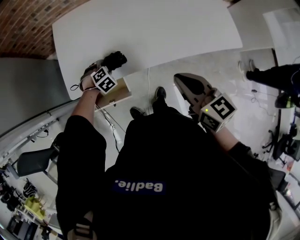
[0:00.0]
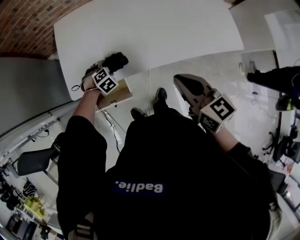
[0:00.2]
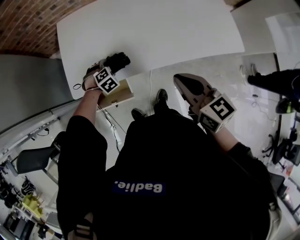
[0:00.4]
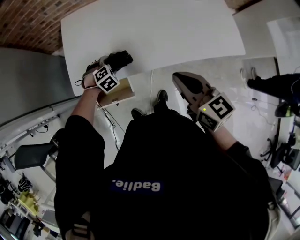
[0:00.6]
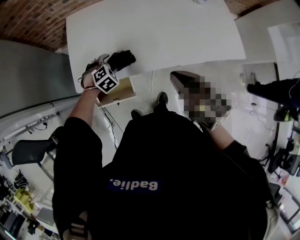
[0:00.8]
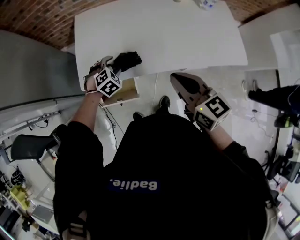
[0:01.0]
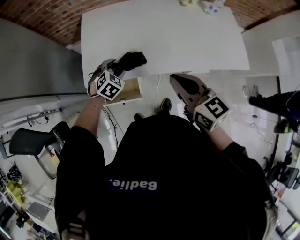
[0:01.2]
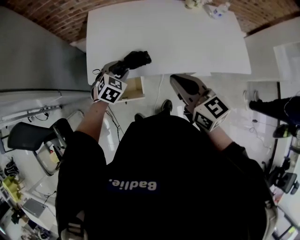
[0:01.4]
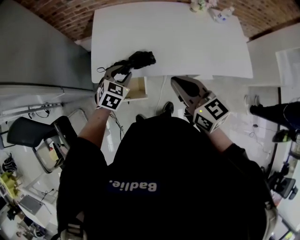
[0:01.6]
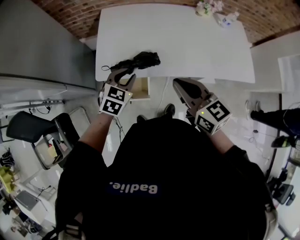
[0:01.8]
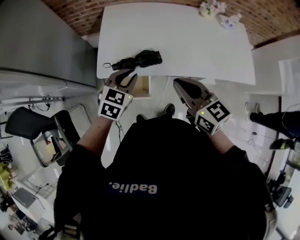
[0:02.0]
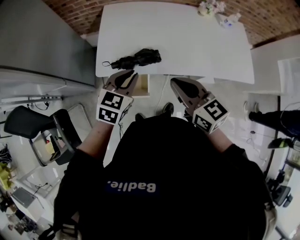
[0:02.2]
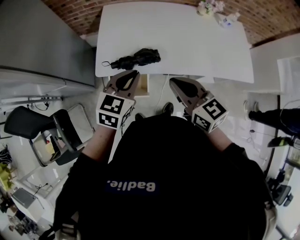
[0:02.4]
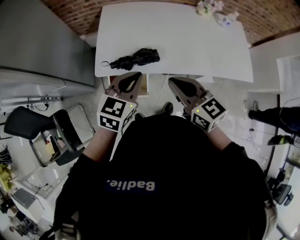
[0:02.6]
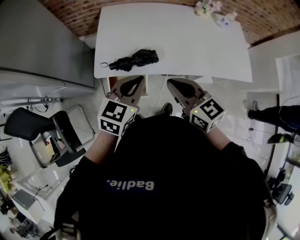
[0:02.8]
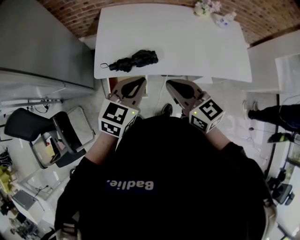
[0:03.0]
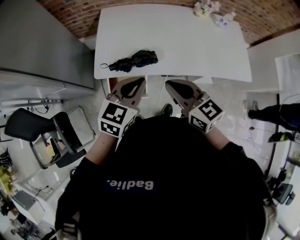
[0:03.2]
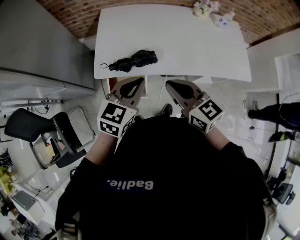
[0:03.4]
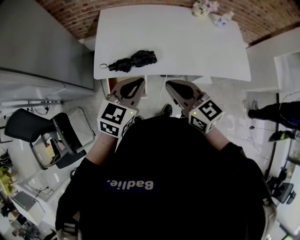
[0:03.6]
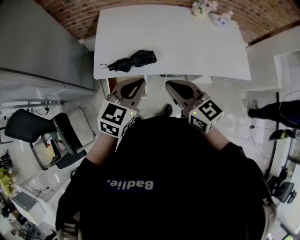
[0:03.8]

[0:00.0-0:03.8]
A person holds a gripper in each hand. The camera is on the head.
0:00.0 to 0:01.2: The left gripper shifts about 10 cm upward, and turns by some 30 degrees, while the right gripper is displaced to the left by roughly 10 cm.
0:01.2 to 0:02.6: The left gripper travels upward and backward by some 20 cm, rotates some 40 degrees, and closes its fingers. The right gripper shifts approximately 5 cm to the left.
0:02.6 to 0:03.8: There are only small adjustments of the grippers.

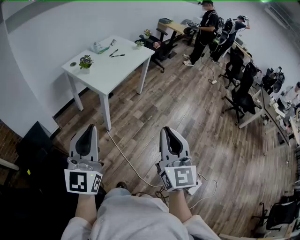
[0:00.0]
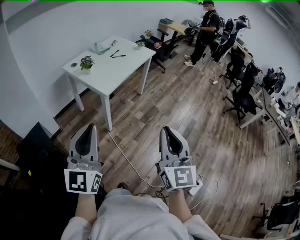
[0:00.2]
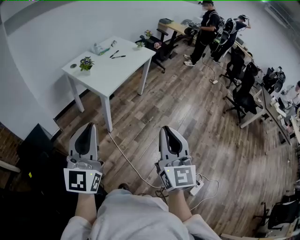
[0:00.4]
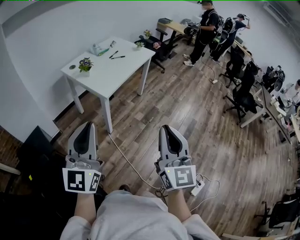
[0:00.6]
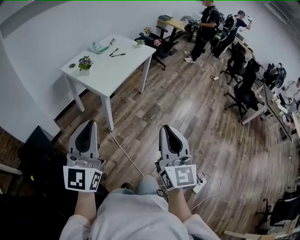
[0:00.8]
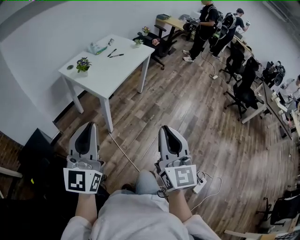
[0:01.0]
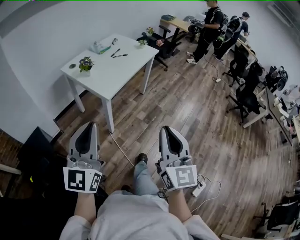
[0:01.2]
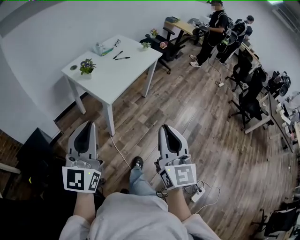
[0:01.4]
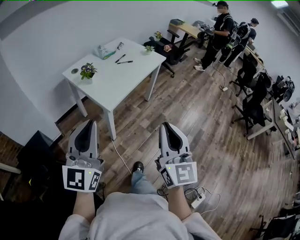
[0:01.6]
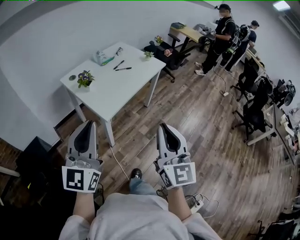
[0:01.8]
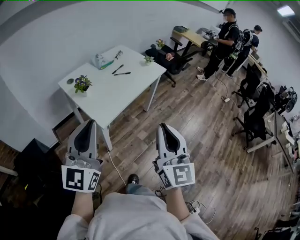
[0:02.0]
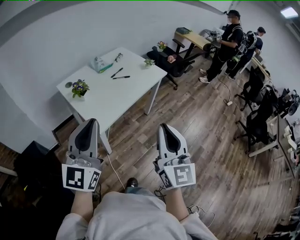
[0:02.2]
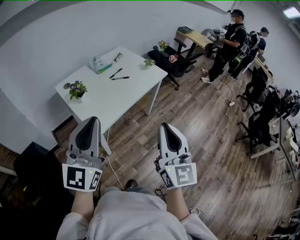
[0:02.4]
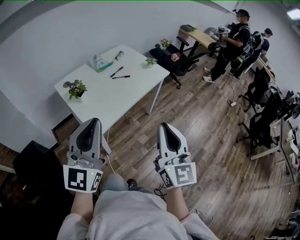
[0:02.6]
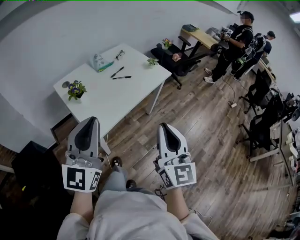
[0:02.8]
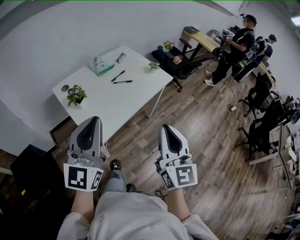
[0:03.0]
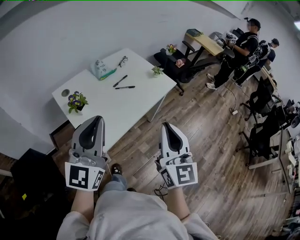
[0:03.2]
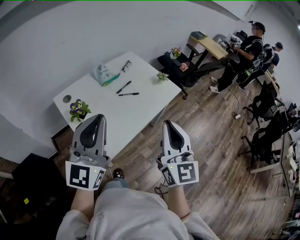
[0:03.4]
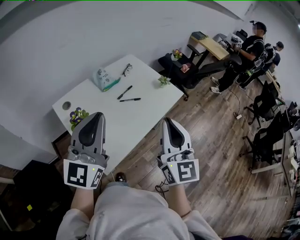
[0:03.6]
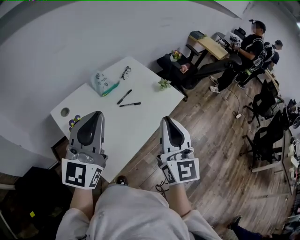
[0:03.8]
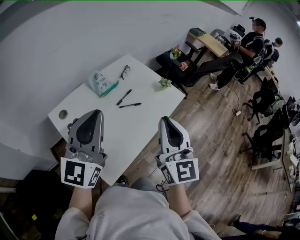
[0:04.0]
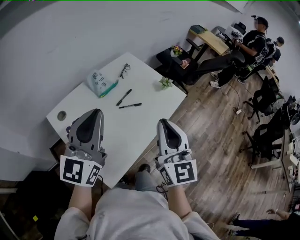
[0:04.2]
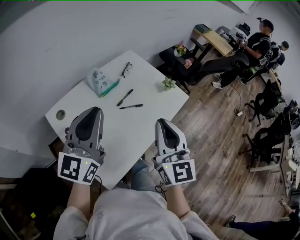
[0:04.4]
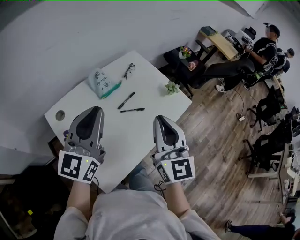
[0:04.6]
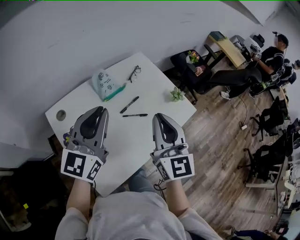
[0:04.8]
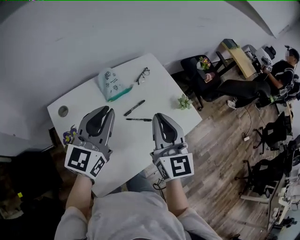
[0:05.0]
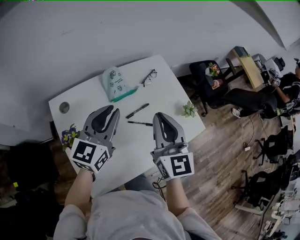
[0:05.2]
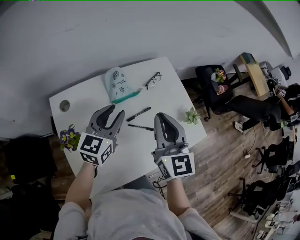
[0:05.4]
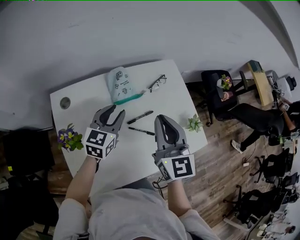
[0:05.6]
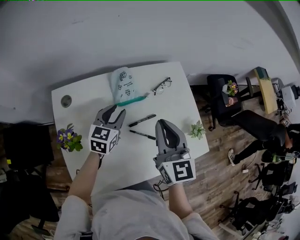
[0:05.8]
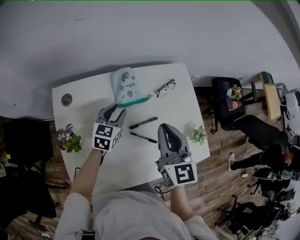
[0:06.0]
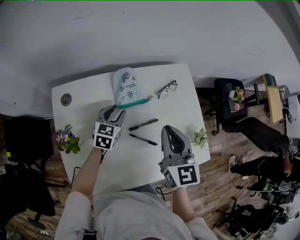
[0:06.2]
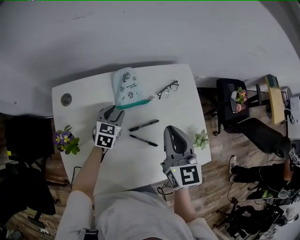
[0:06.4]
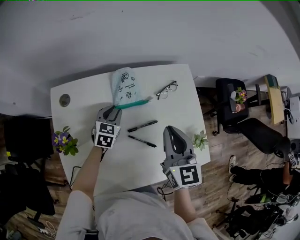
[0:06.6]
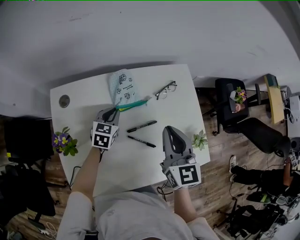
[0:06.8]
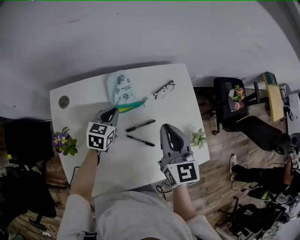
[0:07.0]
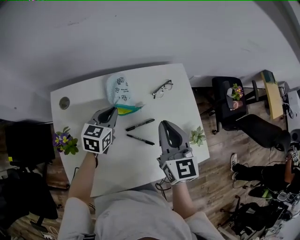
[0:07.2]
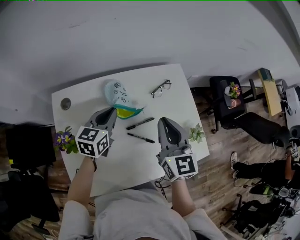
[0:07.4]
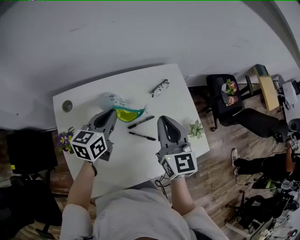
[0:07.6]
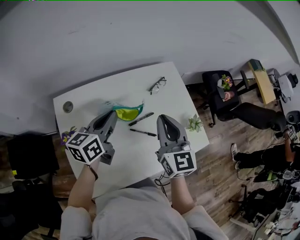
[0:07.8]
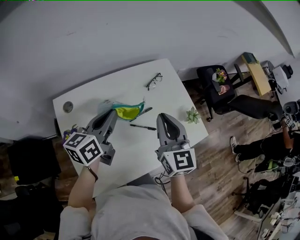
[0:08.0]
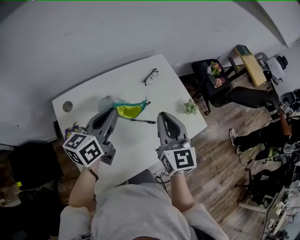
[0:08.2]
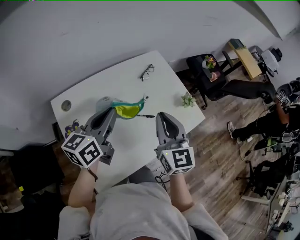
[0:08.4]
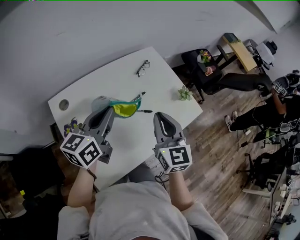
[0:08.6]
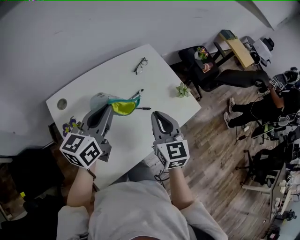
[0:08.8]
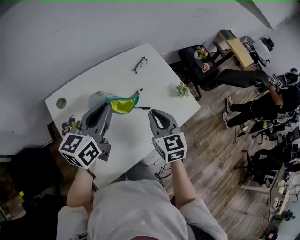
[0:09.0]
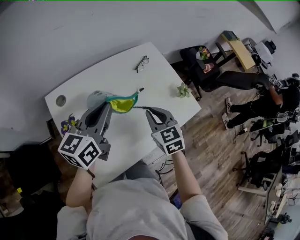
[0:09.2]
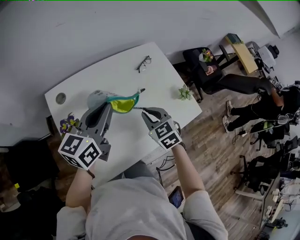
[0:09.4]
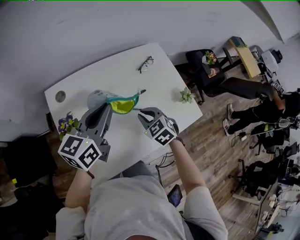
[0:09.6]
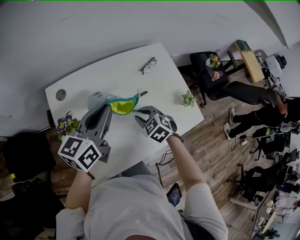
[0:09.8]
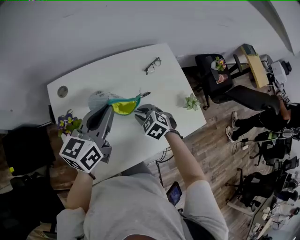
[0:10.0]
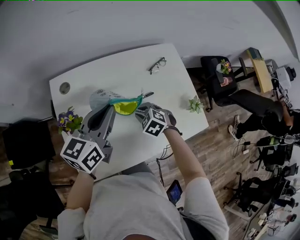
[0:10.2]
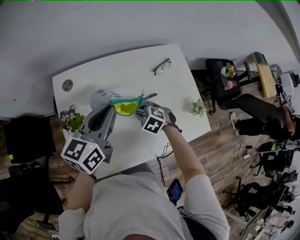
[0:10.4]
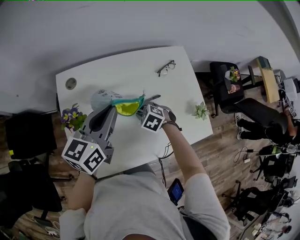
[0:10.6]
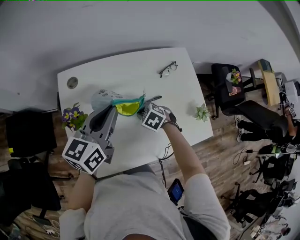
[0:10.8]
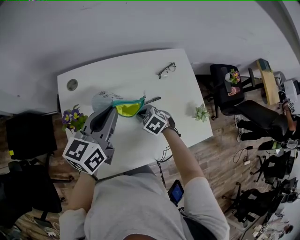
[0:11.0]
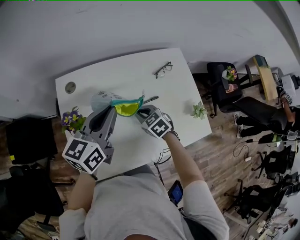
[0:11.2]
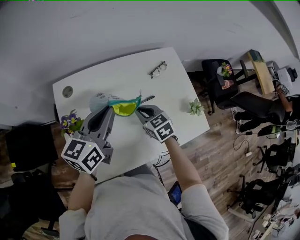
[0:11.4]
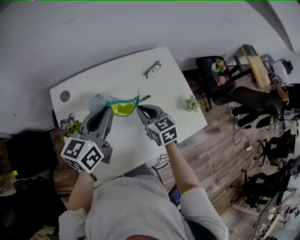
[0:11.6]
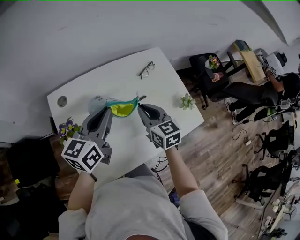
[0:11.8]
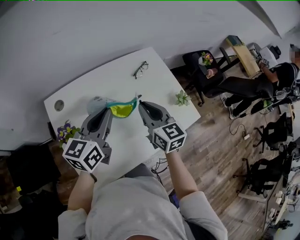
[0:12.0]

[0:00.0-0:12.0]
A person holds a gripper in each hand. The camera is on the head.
0:00.0 to 0:01.6: Both grippers travel together forward, about 20 cm.
0:01.6 to 0:03.0: Both grippers travel together forward, about 25 cm.
0:03.0 to 0:04.4: The grippers both shift forward by some 30 cm.
0:04.4 to 0:06.0: The left gripper shifts some 30 cm downward, tilts its fingers roughly 40 degrees downward, and opens; the right gripper ends up some 30 cm from where it was, and changes its angle by approximately 40 degrees.
0:06.0 to 0:07.6: The left gripper shifts some 10 cm upward, and closes its fingers.
0:07.6 to 0:09.0: The left gripper goes roughly 15 cm backward and upward. Meanwhile the right gripper moves backward, roughly 15 cm.
0:09.0 to 0:10.4: The right gripper goes some 20 cm downward, and tips its fingers downward by some 40 degrees.
0:10.4 to 0:12.0: The right gripper moves upward, roughly 20 cm, and points its fingers about 50 degrees further upward.

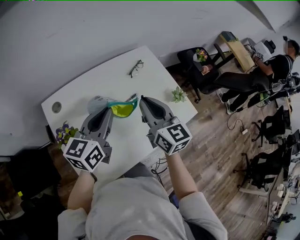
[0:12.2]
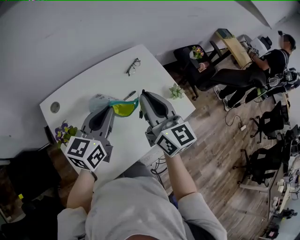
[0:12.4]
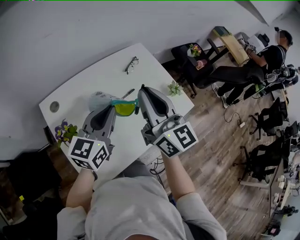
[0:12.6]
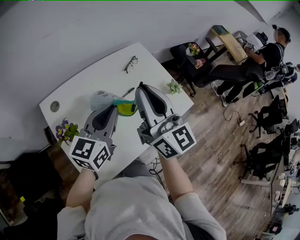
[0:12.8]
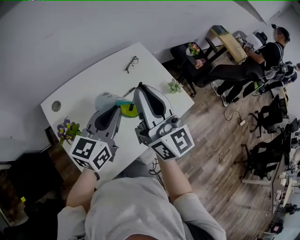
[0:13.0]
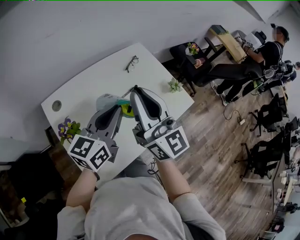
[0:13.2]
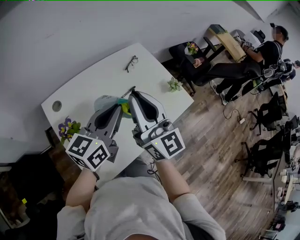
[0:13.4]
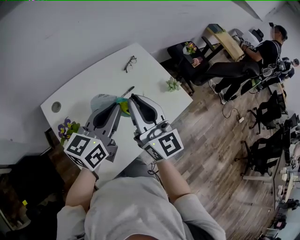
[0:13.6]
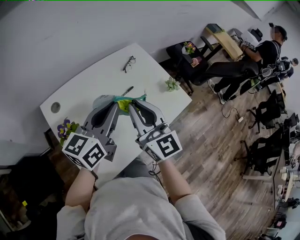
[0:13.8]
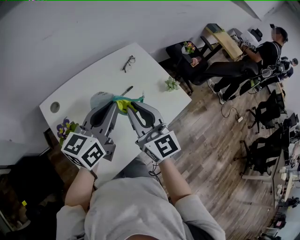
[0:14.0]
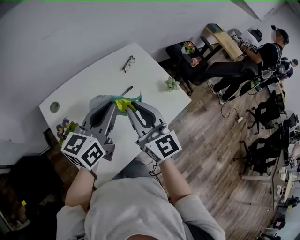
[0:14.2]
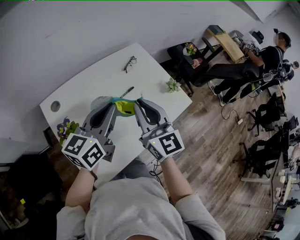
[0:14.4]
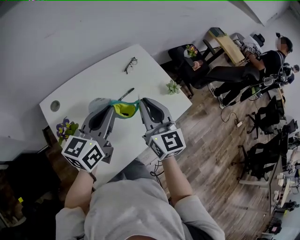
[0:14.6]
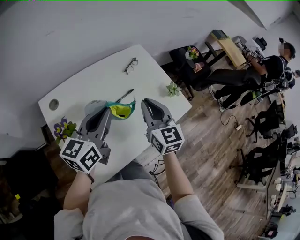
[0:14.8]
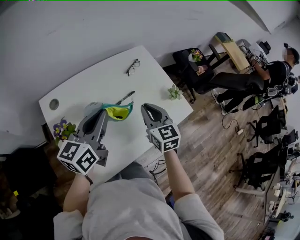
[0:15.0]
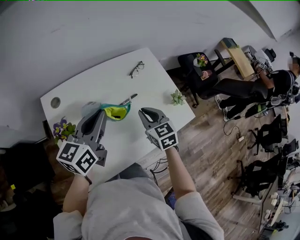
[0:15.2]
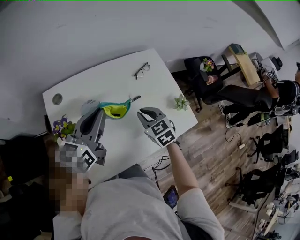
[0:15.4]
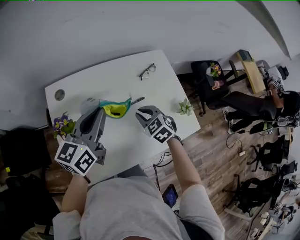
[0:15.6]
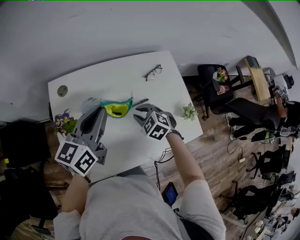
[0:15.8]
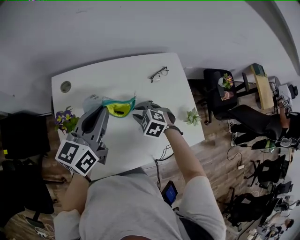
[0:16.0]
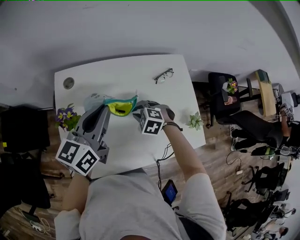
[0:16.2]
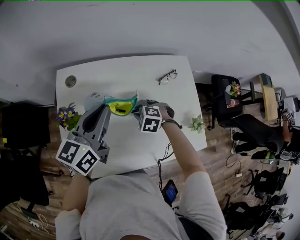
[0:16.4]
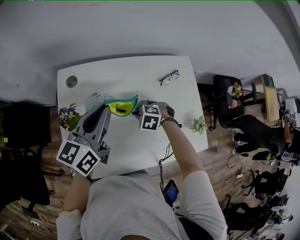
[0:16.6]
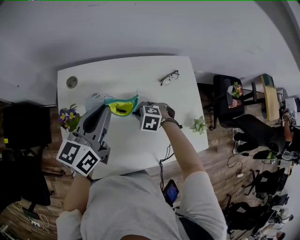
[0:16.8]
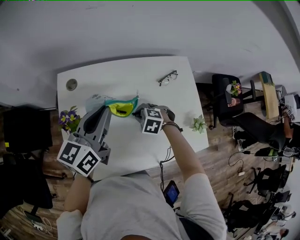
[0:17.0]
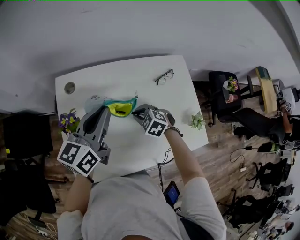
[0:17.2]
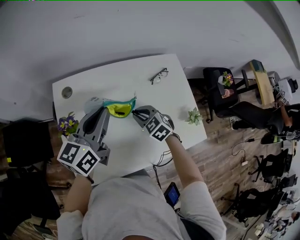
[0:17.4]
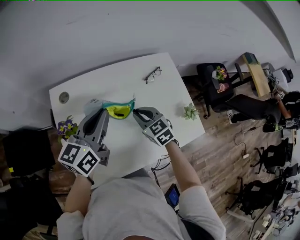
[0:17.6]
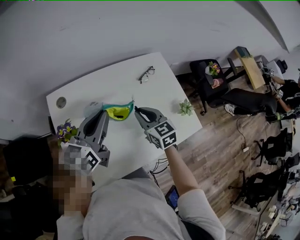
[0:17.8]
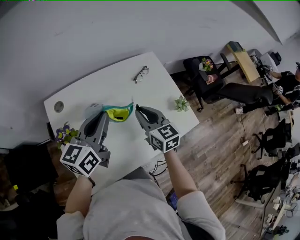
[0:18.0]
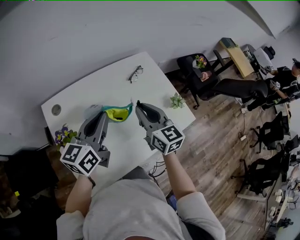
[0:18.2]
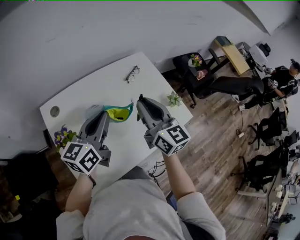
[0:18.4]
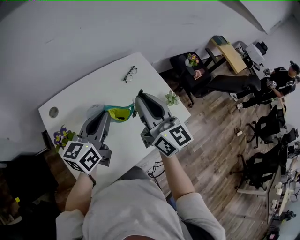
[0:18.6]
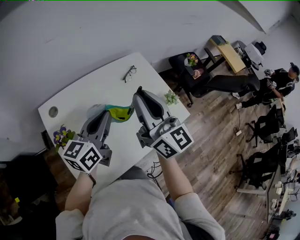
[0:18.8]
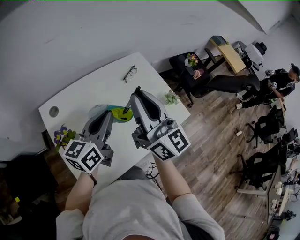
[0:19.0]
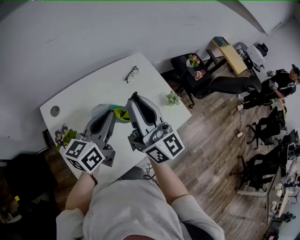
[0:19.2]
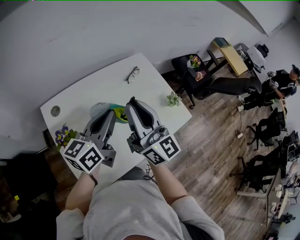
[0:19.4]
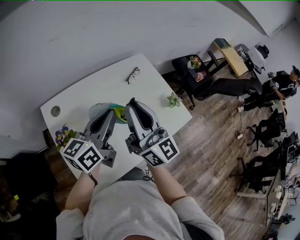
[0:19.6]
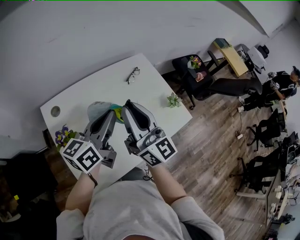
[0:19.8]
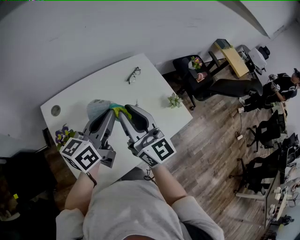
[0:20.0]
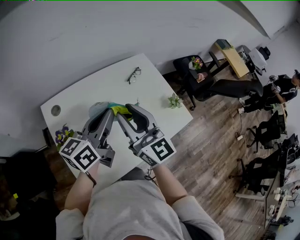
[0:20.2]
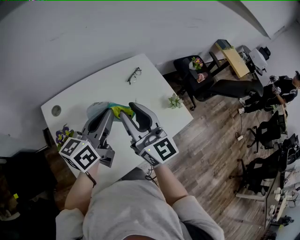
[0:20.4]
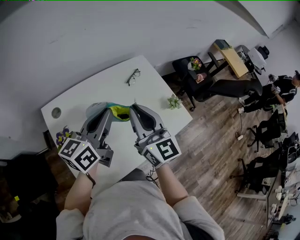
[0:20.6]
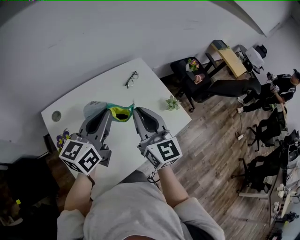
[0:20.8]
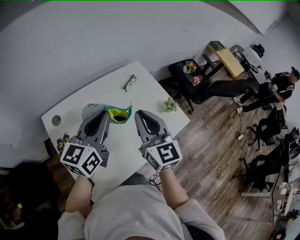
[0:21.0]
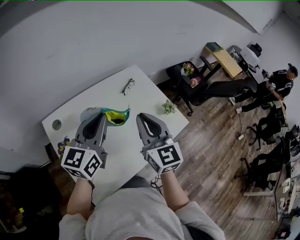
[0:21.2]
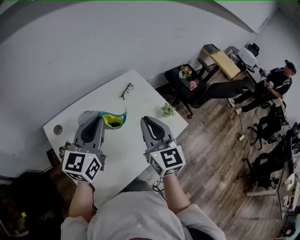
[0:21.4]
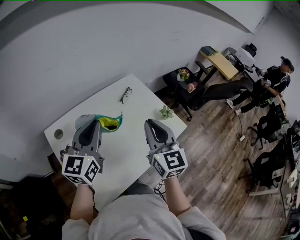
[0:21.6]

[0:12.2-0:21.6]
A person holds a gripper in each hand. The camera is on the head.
0:12.2 to 0:13.8: The left gripper changes place by some 5 cm. Meanwhile the right gripper heads backward, covering some 10 cm.
0:13.8 to 0:15.4: The left gripper shifts by about 5 cm. The right gripper shifts some 20 cm downward and forward, and tips its fingers downward by roughly 50 degrees.
0:15.4 to 0:17.0: The right gripper moves downward, roughly 10 cm, and changes its angle by roughly 60 degrees. Meanwhile the left gripper moves some 5 cm.
0:17.0 to 0:18.4: The left gripper moves roughly 5 cm, and rotates some 20 degrees. The right gripper goes roughly 30 cm upward, and angles its fingers upward, by some 70 degrees.
0:18.4 to 0:20.0: The right gripper moves to the left, about 5 cm, and reaches about 10 cm upward, then returns.
0:20.0 to 0:21.6: The left gripper shifts by about 5 cm, and changes its angle by approximately 30 degrees, while the right gripper goes about 10 cm to the right, and changes its angle by approximately 30 degrees.
